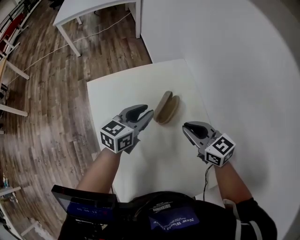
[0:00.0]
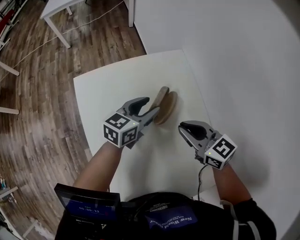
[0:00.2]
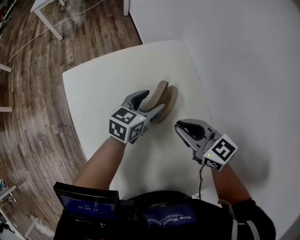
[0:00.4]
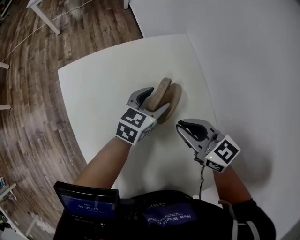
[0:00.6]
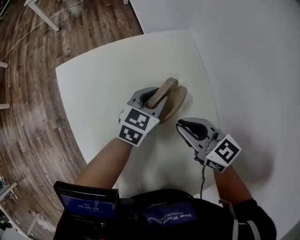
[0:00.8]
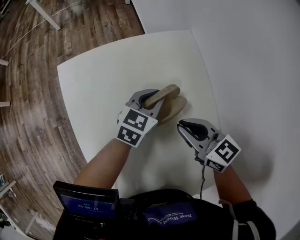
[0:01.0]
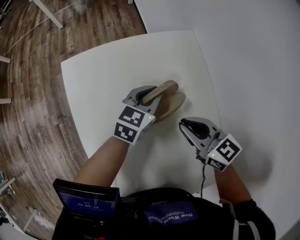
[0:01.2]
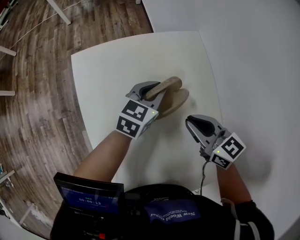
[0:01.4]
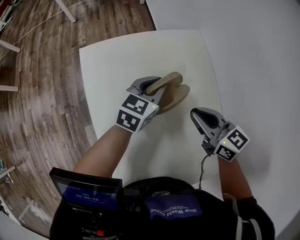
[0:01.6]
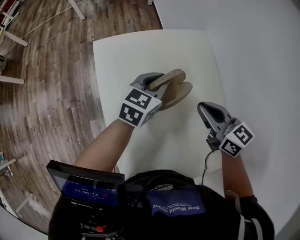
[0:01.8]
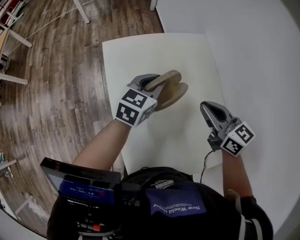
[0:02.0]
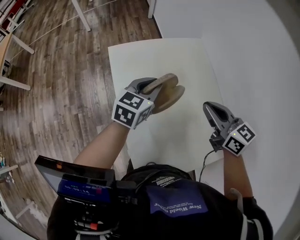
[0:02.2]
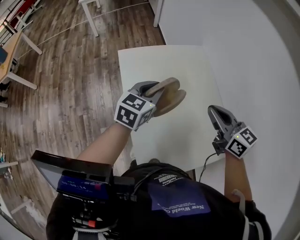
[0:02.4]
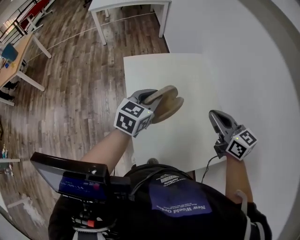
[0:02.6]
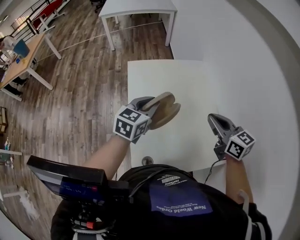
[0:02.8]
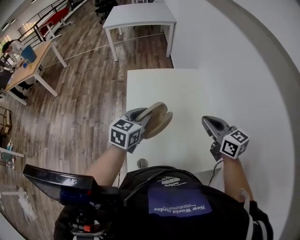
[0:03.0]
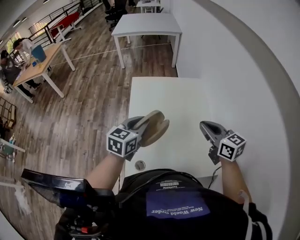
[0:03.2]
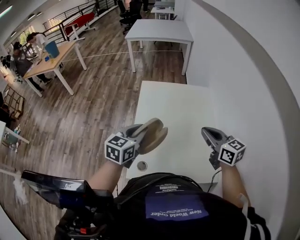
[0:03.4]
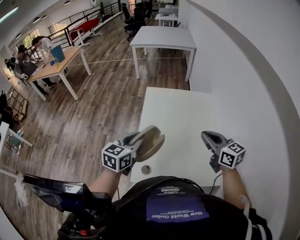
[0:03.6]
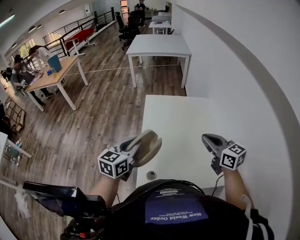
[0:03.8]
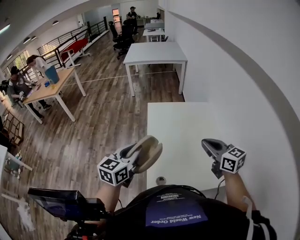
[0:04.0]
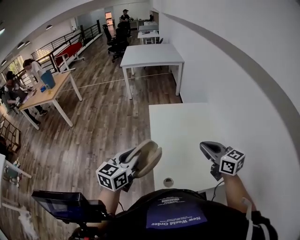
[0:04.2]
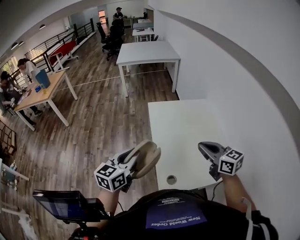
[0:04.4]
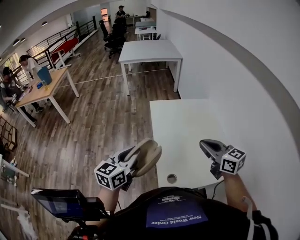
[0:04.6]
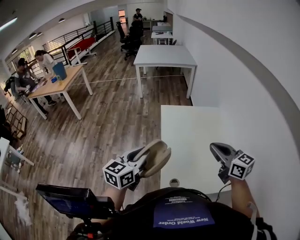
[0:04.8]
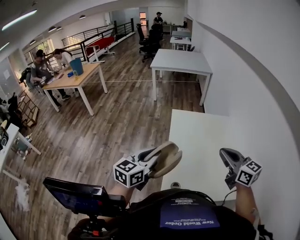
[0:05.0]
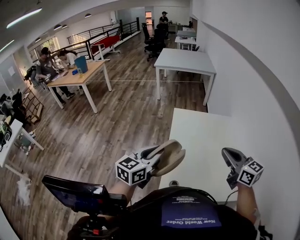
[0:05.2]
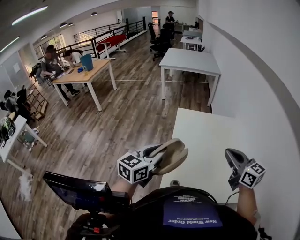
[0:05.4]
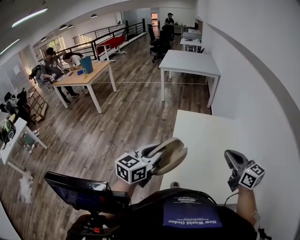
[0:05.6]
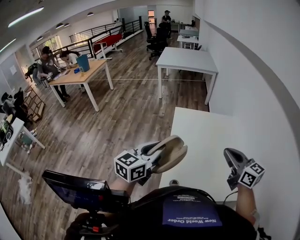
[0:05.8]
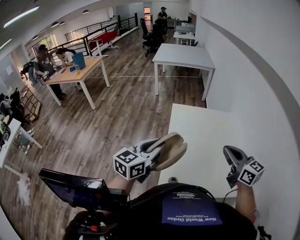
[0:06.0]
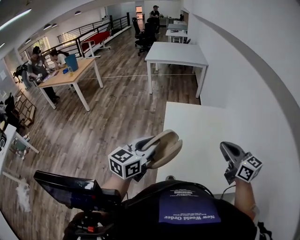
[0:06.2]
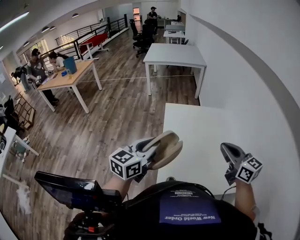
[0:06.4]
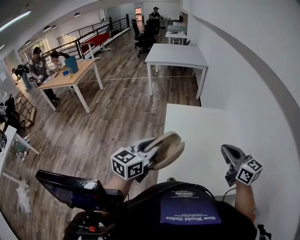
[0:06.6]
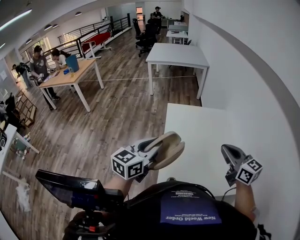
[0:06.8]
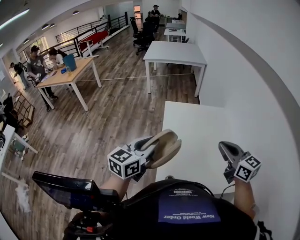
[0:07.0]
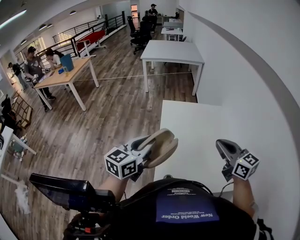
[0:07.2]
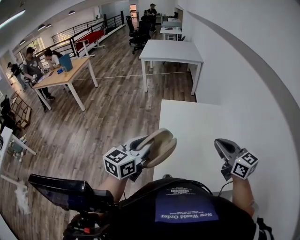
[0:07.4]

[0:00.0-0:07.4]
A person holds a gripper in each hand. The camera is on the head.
0:00.0 to 0:01.4: The left gripper shifts roughly 10 cm downward and forward, and opens, then closes once more. Meanwhile the right gripper heads downward, covering some 5 cm.
0:01.4 to 0:03.0: The right gripper moves upward and backward, some 35 cm. Meanwhile the left gripper moves backward, upward and to the left, roughly 40 cm.
0:03.0 to 0:04.4: The grippers both shift to the left and backward by roughly 25 cm.
0:04.4 to 0:06.0: The grippers both shift to the right by roughly 10 cm.
0:06.0 to 0:07.4: The grippers stay close to where they were, moving slightly.

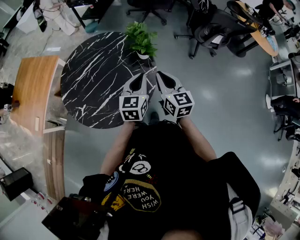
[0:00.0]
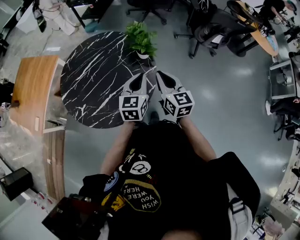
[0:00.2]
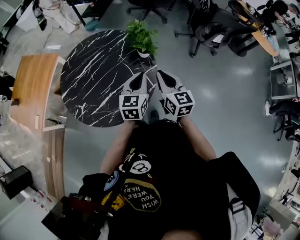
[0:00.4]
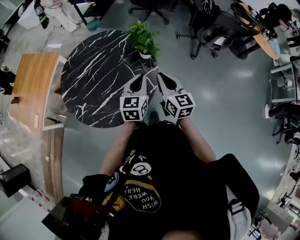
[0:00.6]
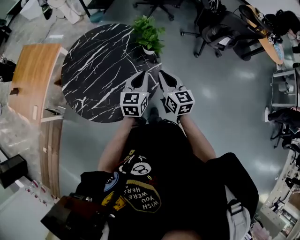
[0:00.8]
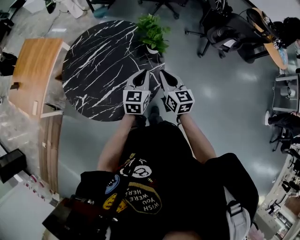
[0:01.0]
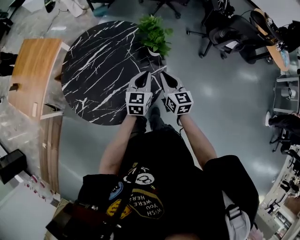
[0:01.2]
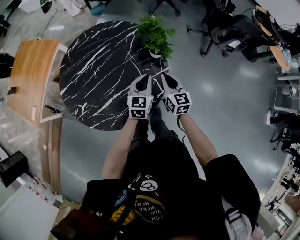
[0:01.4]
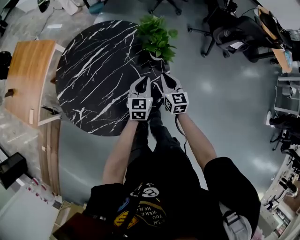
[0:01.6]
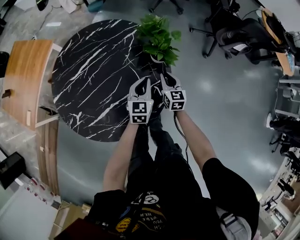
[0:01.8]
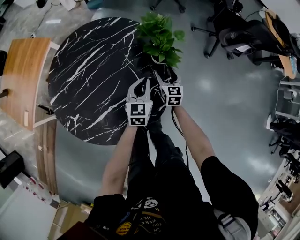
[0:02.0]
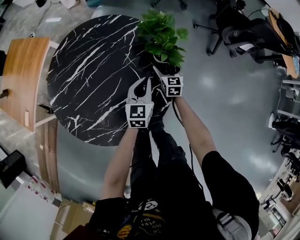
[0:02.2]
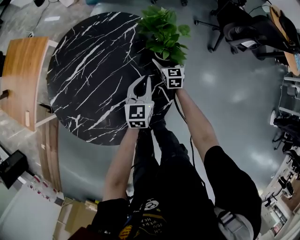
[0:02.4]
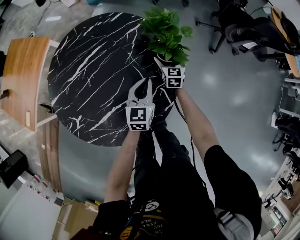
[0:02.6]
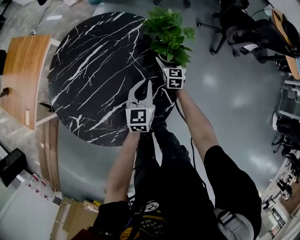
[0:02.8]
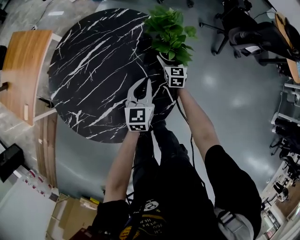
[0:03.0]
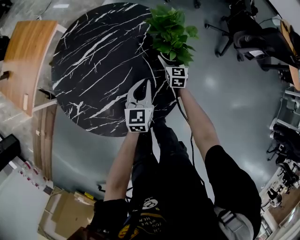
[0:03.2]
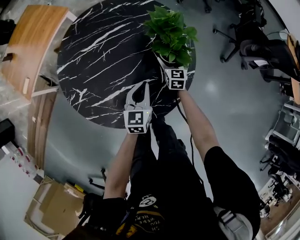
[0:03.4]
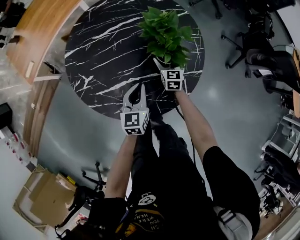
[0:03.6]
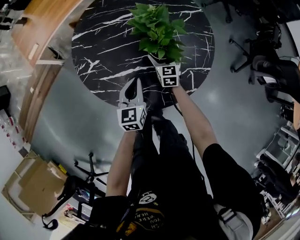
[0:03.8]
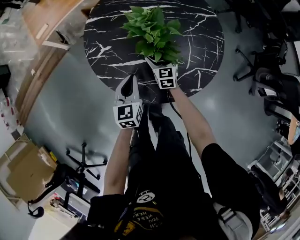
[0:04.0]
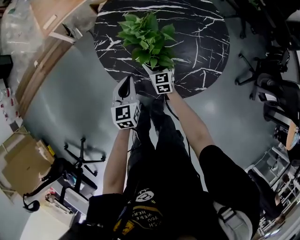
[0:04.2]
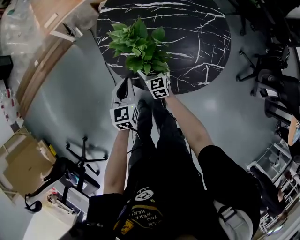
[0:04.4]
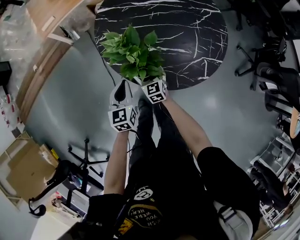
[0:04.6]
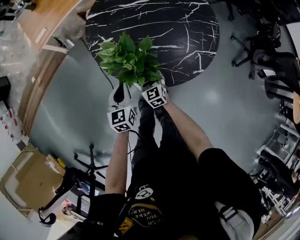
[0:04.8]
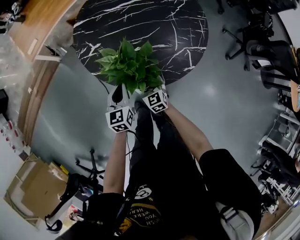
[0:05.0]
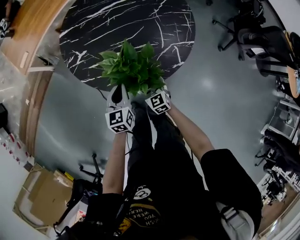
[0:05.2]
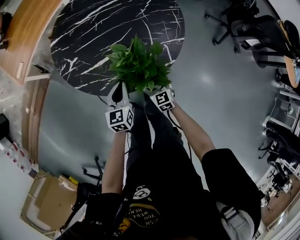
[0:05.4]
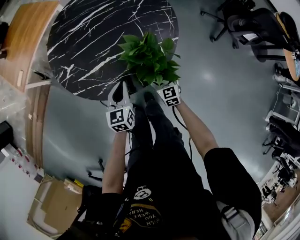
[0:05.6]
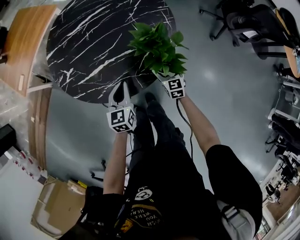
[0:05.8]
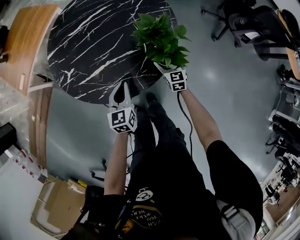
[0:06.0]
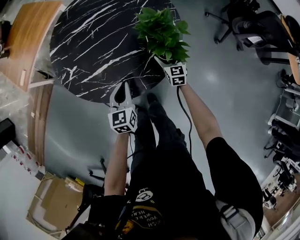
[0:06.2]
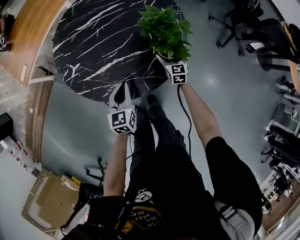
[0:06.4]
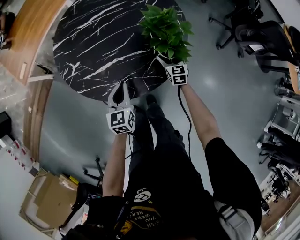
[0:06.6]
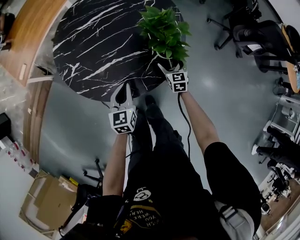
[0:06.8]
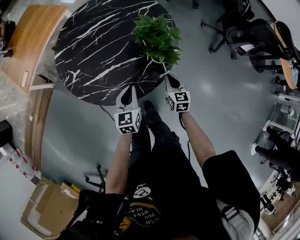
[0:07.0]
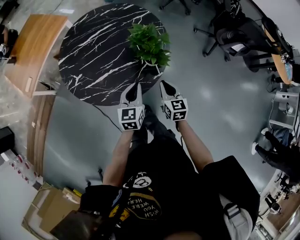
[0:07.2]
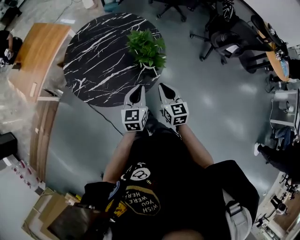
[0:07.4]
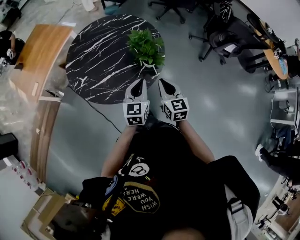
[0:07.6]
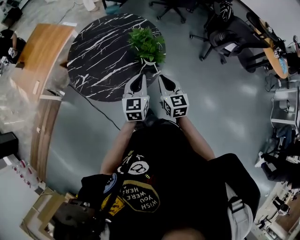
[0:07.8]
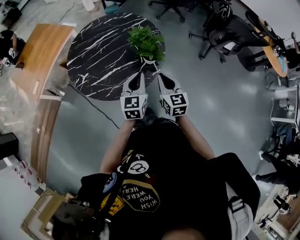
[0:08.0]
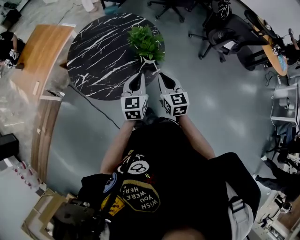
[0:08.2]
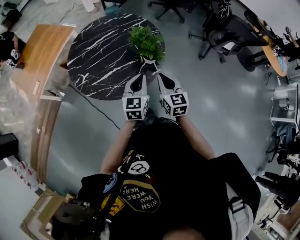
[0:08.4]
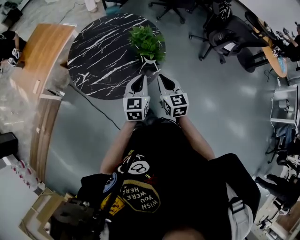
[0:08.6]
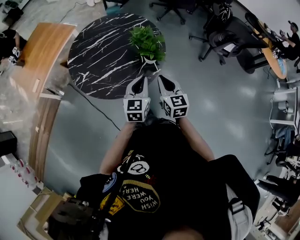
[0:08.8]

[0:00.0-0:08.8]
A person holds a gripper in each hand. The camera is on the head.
0:00.0 to 0:01.4: Both grippers travel together downward and forward, some 15 cm.
0:01.4 to 0:03.0: The right gripper travels downward and forward by roughly 30 cm, and opens, while the left gripper goes about 10 cm downward and to the left.
0:03.0 to 0:04.4: The left gripper shifts by some 40 cm, and changes its angle by some 40 degrees; the right gripper moves roughly 50 cm, and changes its angle by approximately 50 degrees.
0:04.4 to 0:05.8: The left gripper changes place by some 20 cm, and swivels roughly 20 degrees; the right gripper ends up some 35 cm from where it was, and turns by some 30 degrees.
0:05.8 to 0:07.4: The left gripper is displaced upward and to the right by some 20 cm; the right gripper shifts some 25 cm upward, and closes up.
0:07.4 to 0:08.8: The right gripper moves approximately 5 cm. The left gripper moves approximately 5 cm.

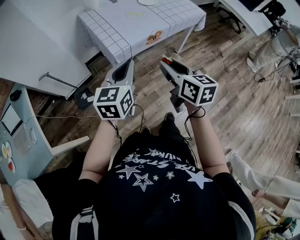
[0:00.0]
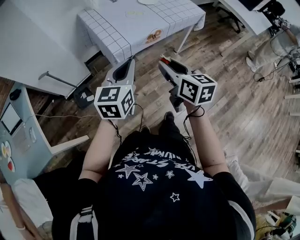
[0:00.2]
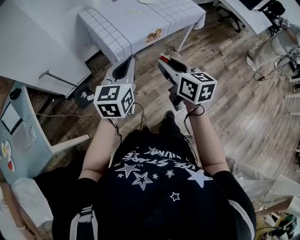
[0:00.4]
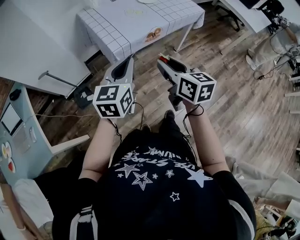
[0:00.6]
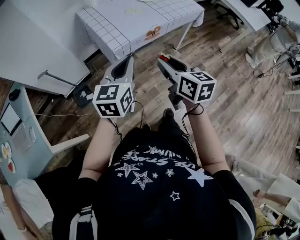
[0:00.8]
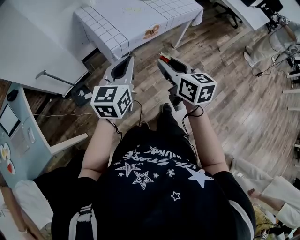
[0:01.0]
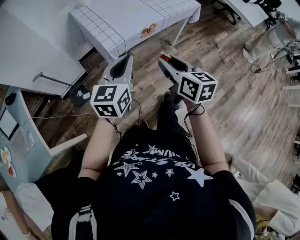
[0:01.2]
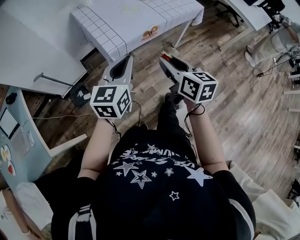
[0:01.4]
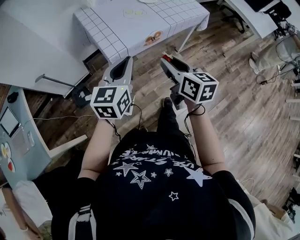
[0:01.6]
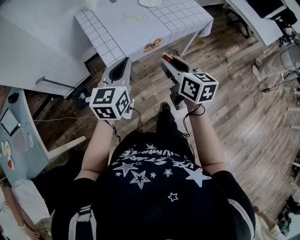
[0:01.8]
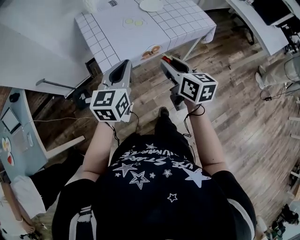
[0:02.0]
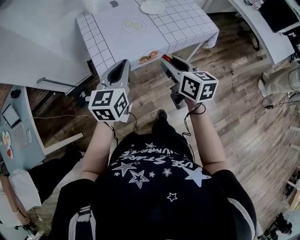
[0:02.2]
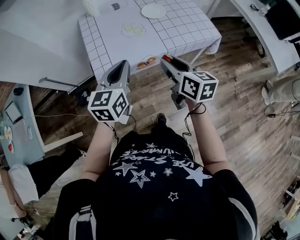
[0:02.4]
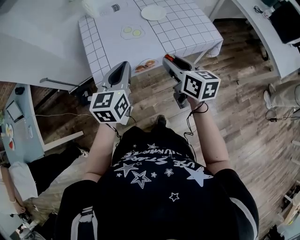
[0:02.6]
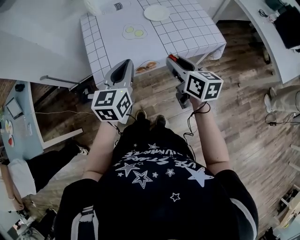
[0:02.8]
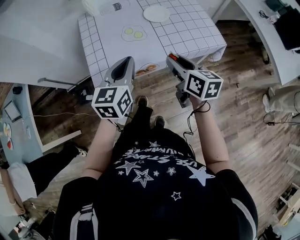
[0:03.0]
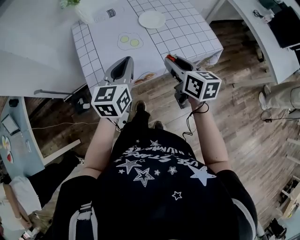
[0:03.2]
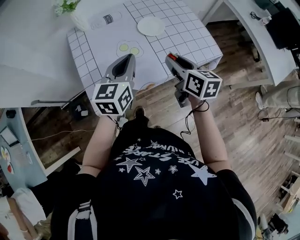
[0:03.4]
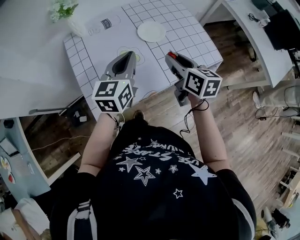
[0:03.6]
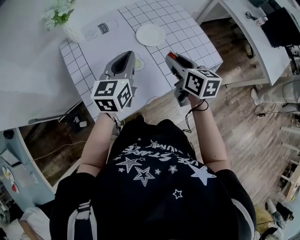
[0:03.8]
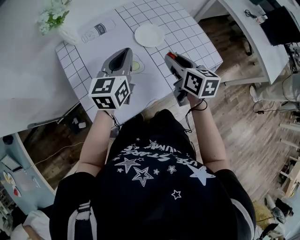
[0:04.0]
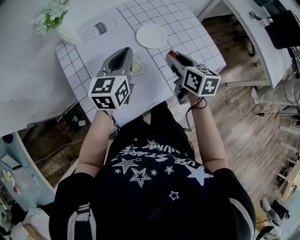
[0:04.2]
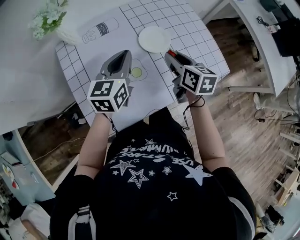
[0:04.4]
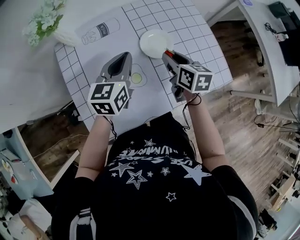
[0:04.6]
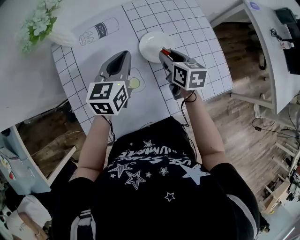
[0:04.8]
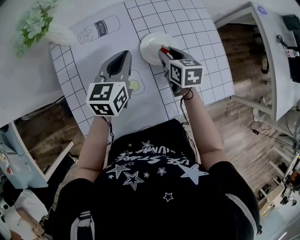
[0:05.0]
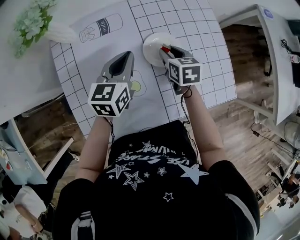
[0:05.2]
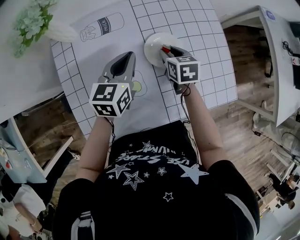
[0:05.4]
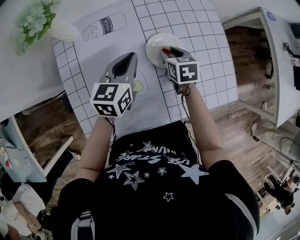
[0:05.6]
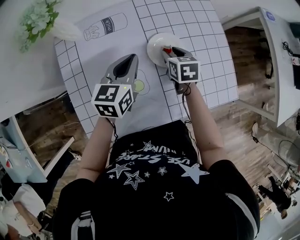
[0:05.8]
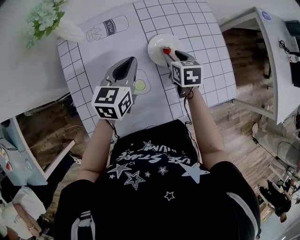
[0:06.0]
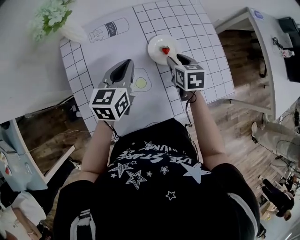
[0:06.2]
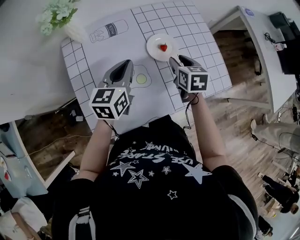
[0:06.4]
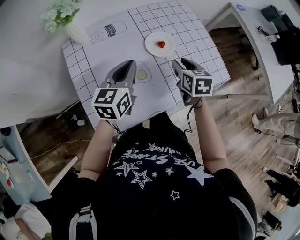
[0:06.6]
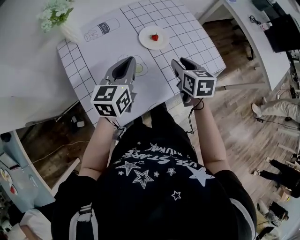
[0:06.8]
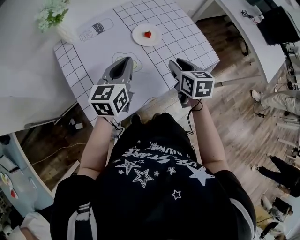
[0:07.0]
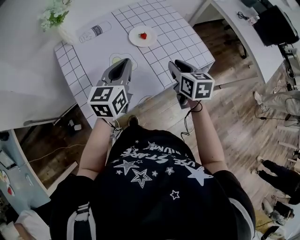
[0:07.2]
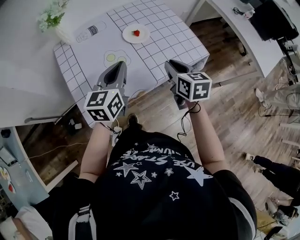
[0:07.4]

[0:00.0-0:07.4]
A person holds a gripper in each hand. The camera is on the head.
0:00.0 to 0:01.4: There are only small adjustments of the grippers.
0:01.4 to 0:03.0: Both grippers travel together forward and to the right, about 30 cm.
0:03.0 to 0:04.4: Both grippers travel together forward, some 25 cm.
0:04.4 to 0:06.0: The right gripper moves downward and forward, approximately 15 cm, and changes its angle by about 30 degrees; the left gripper goes some 5 cm downward and forward.
0:06.0 to 0:07.4: The grippers both shift backward and upward by some 25 cm. The right gripper swivels about 20 degrees, and closes up.
